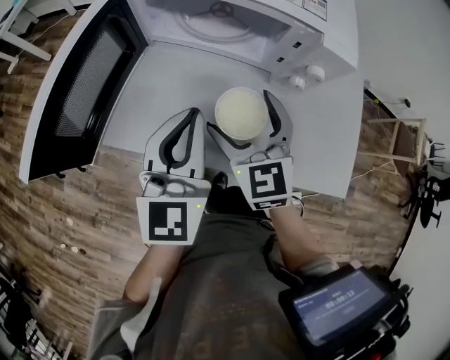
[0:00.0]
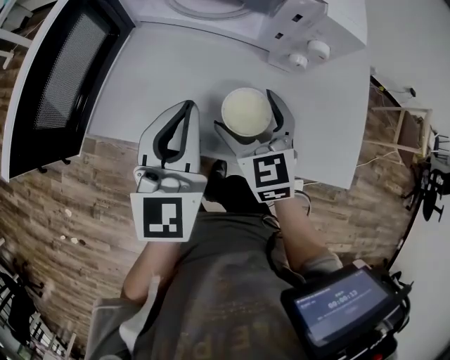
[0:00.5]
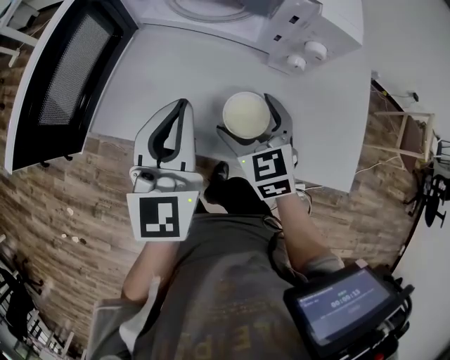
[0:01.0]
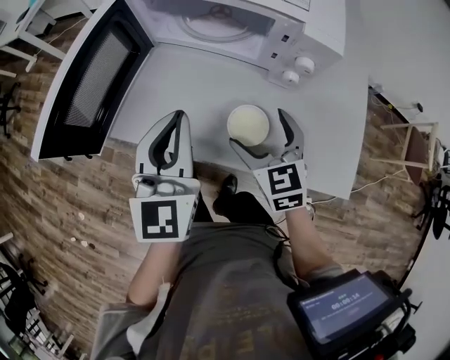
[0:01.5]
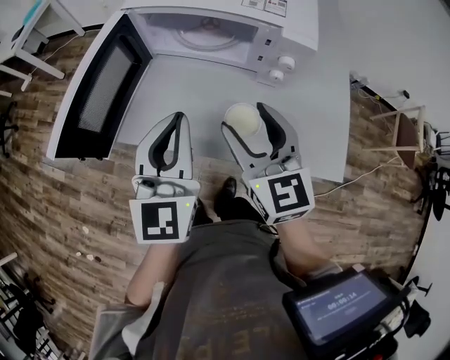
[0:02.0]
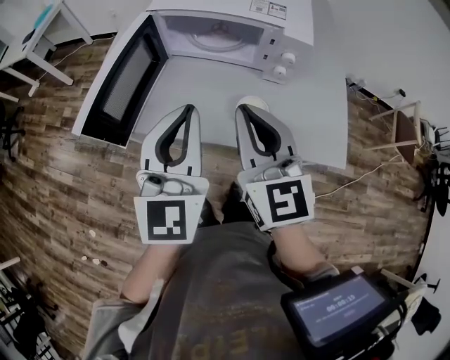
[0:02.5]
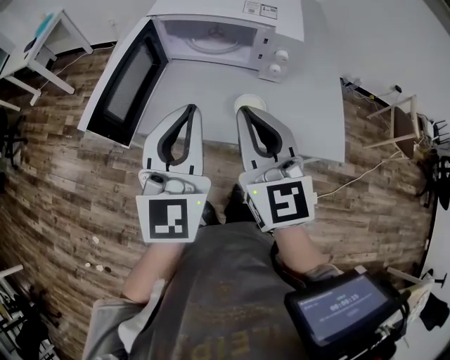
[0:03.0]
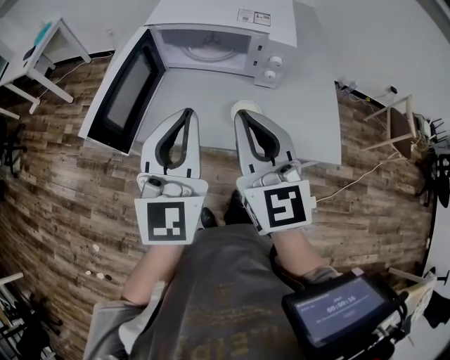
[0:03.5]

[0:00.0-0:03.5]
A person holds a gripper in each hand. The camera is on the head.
0:00.0 to 0:02.0: The right gripper heads upward and backward, covering approximately 10 cm, and closes up; the left gripper moves upward, about 5 cm.
0:02.0 to 0:03.5: Both grippers travel together upward and backward, some 10 cm. The right gripper closes.

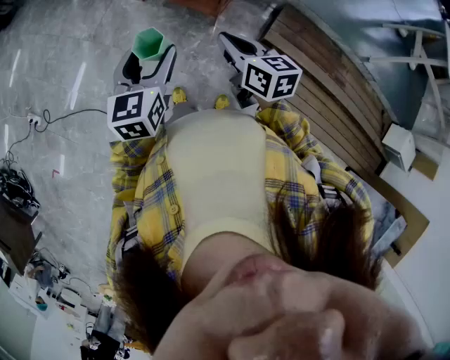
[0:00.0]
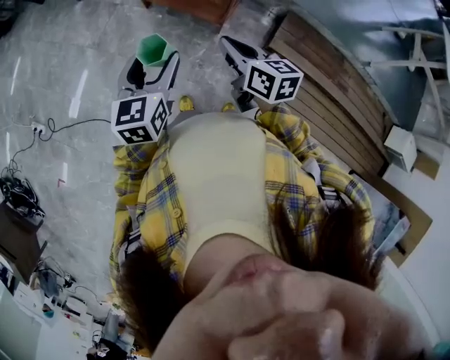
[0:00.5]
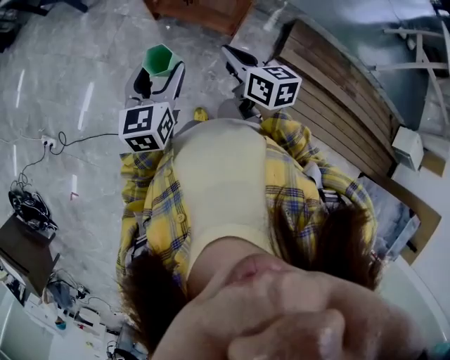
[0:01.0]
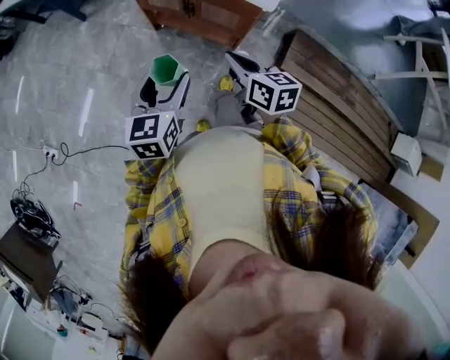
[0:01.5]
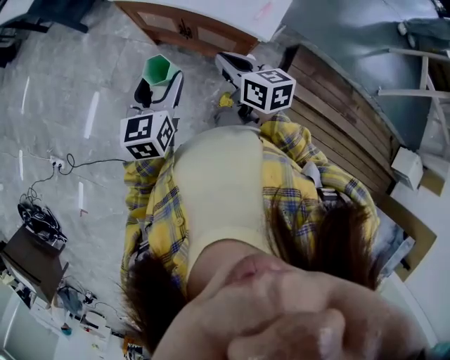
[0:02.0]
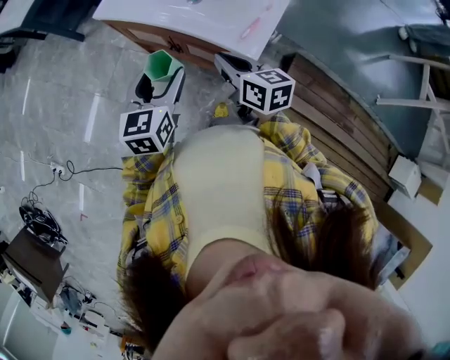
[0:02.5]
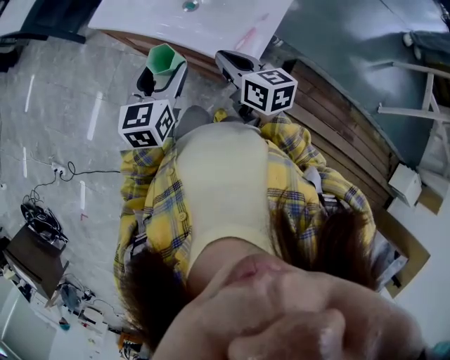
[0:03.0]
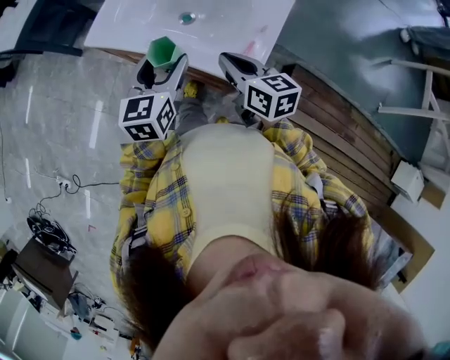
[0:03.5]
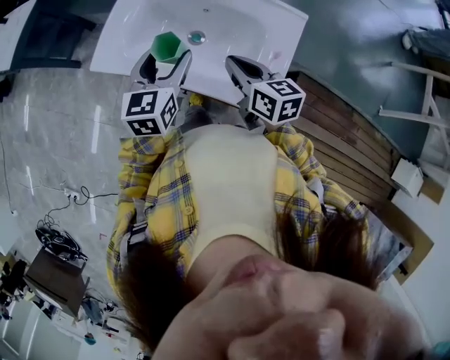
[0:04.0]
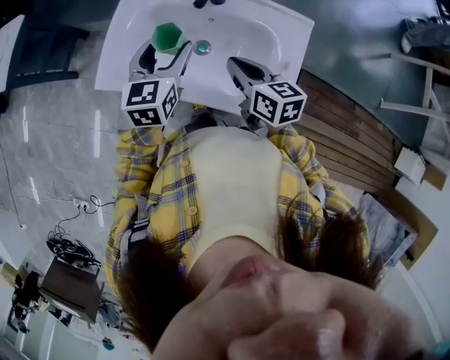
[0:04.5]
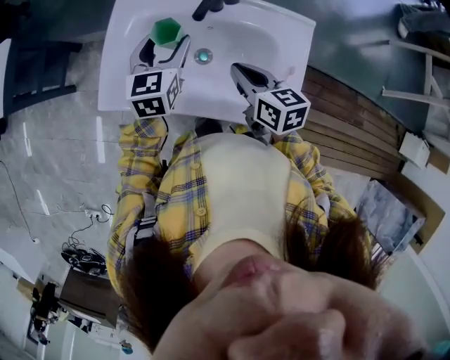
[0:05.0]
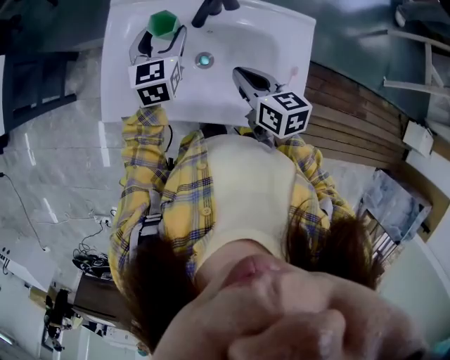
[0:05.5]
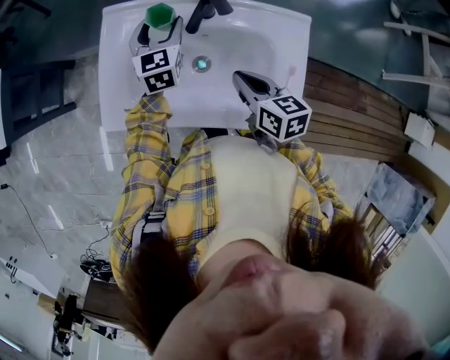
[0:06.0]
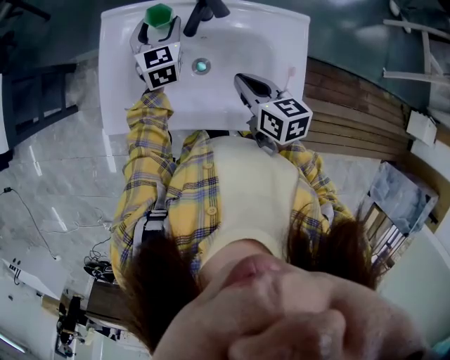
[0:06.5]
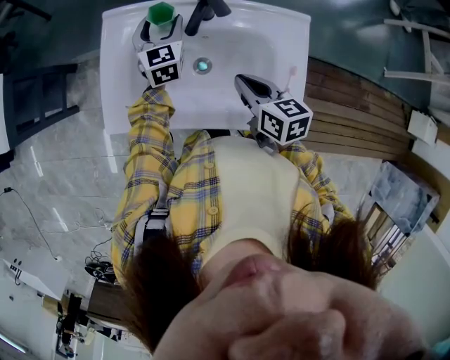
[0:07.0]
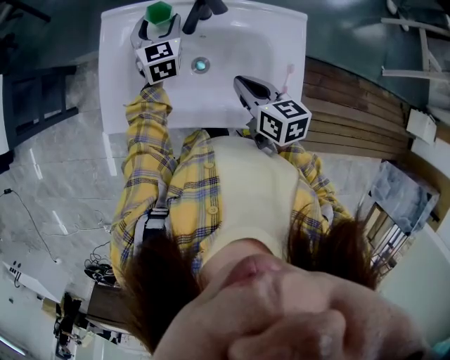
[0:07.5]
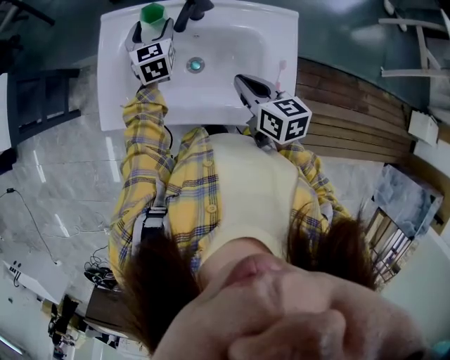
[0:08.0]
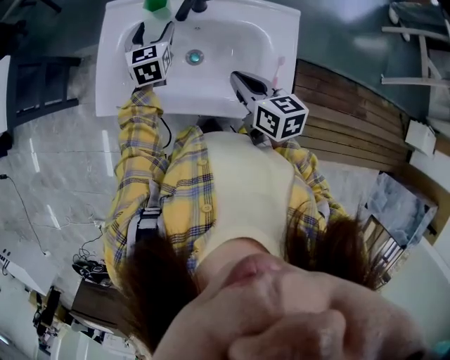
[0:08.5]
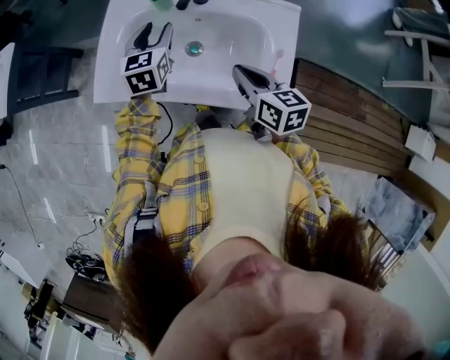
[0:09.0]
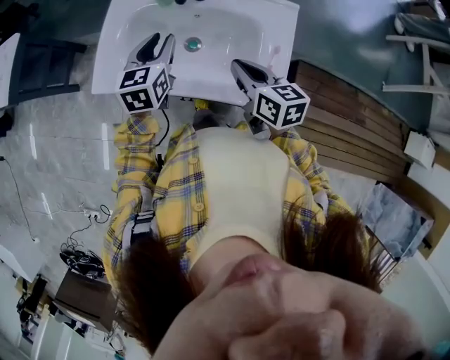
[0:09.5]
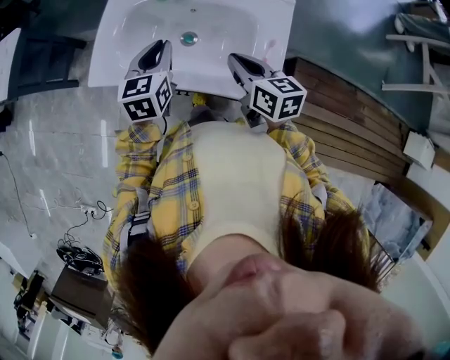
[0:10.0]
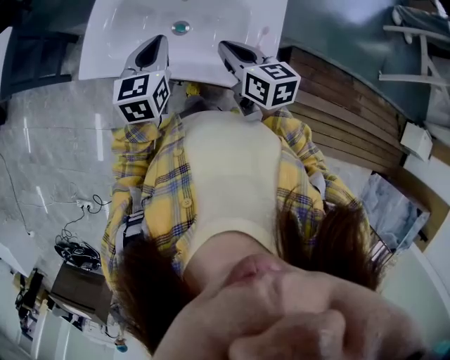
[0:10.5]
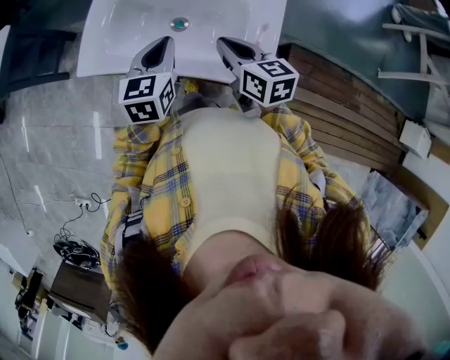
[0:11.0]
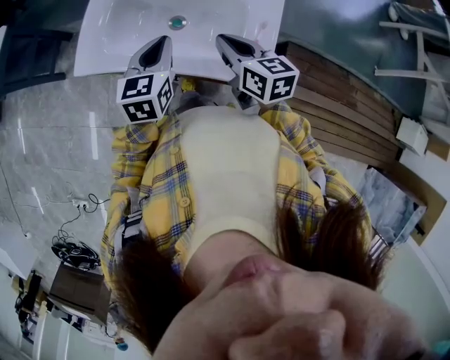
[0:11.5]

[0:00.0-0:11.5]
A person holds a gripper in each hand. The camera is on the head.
0:00.0 to 0:02.0: The grippers both shift forward by approximately 25 cm.
0:02.0 to 0:04.0: The right gripper travels forward and to the right by about 25 cm, while the left gripper travels forward by about 30 cm.
0:04.0 to 0:06.0: The right gripper travels forward by about 5 cm, while the left gripper goes about 25 cm forward.
0:06.0 to 0:07.5: The grippers stay close to where they were, moving slightly.
0:07.5 to 0:09.5: The right gripper moves approximately 5 cm; the left gripper travels backward by some 20 cm, and closes its fingers.
0:09.5 to 0:11.5: The left gripper shifts some 10 cm backward, and closes up.

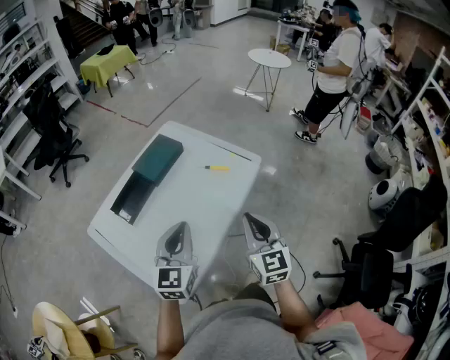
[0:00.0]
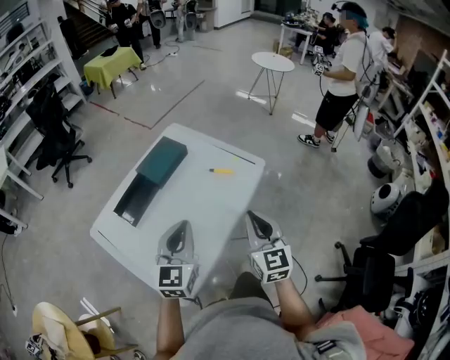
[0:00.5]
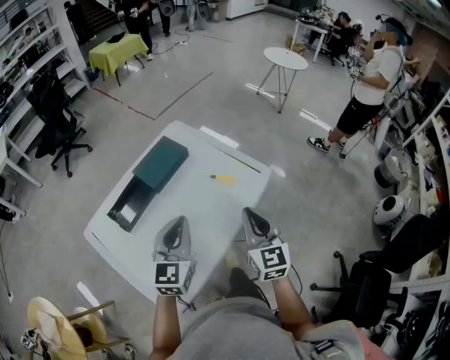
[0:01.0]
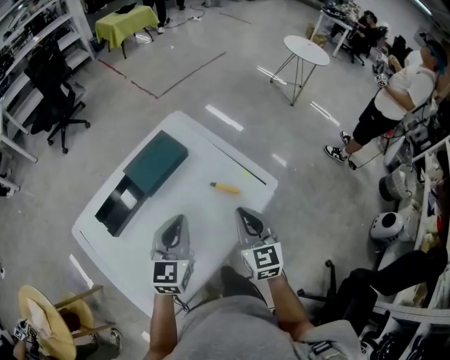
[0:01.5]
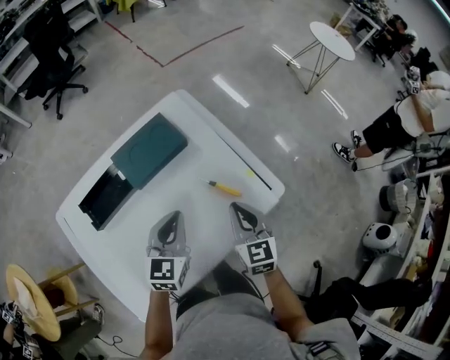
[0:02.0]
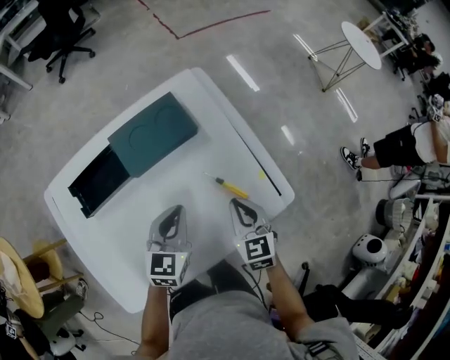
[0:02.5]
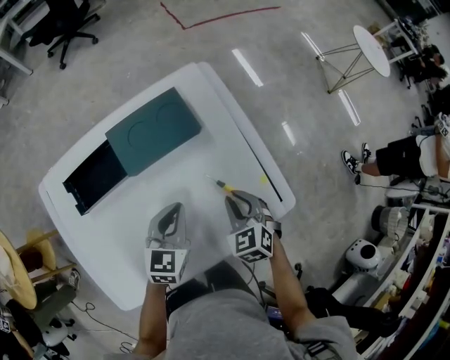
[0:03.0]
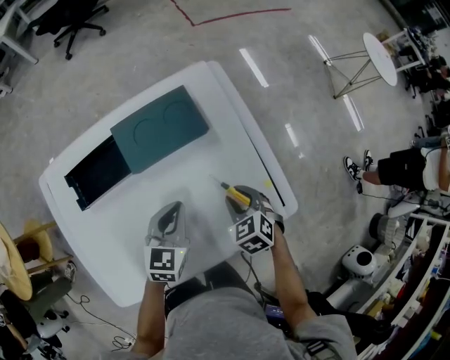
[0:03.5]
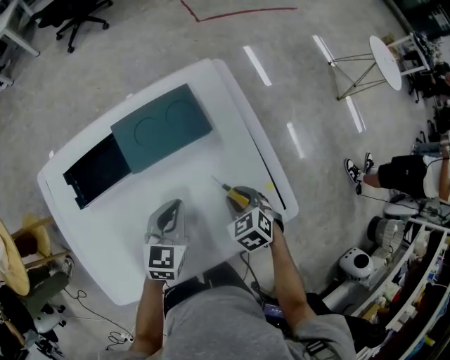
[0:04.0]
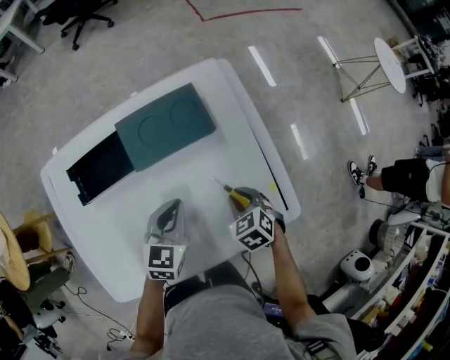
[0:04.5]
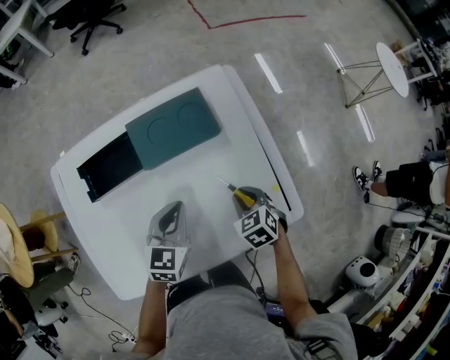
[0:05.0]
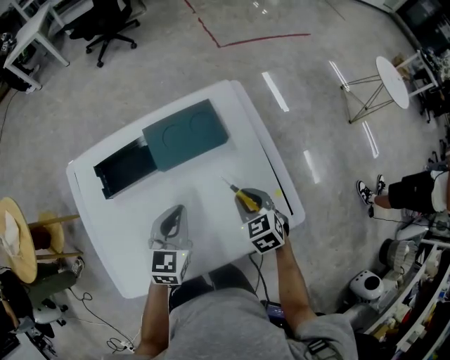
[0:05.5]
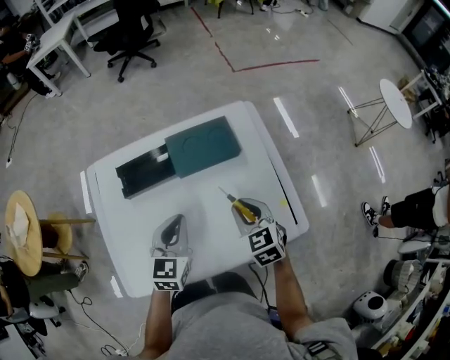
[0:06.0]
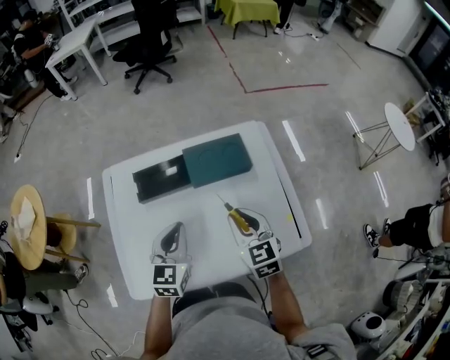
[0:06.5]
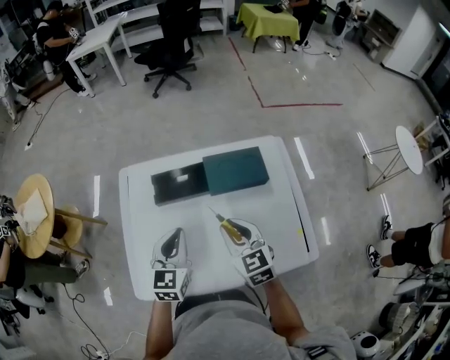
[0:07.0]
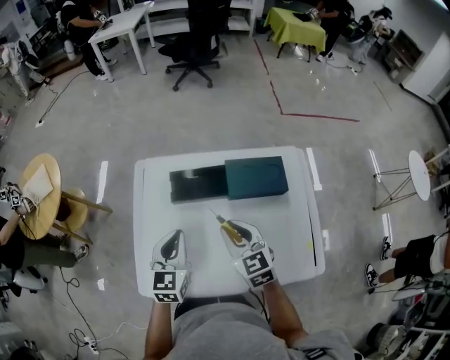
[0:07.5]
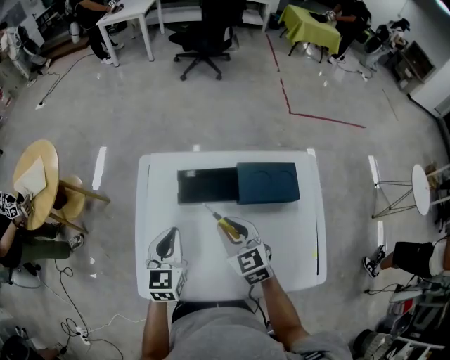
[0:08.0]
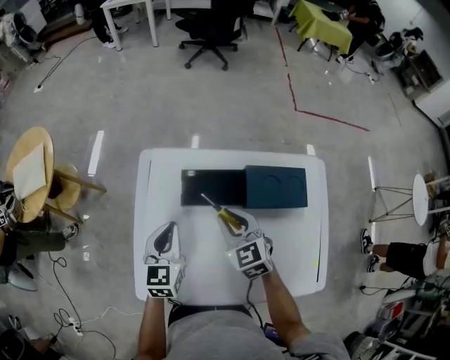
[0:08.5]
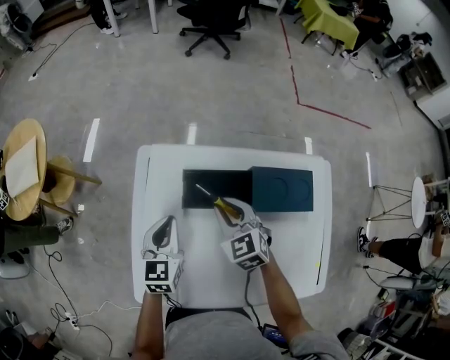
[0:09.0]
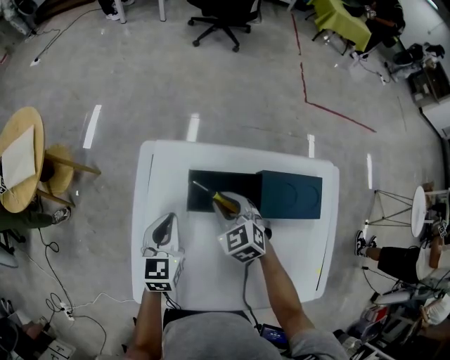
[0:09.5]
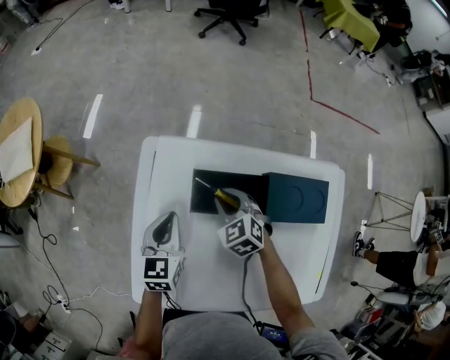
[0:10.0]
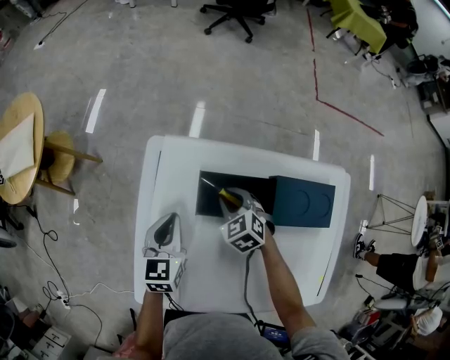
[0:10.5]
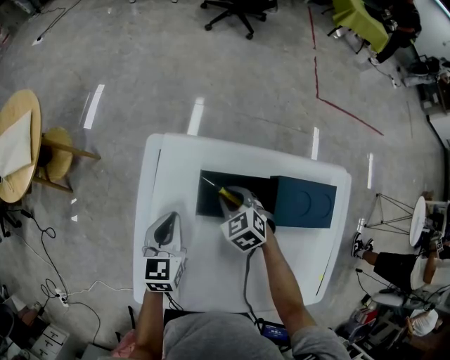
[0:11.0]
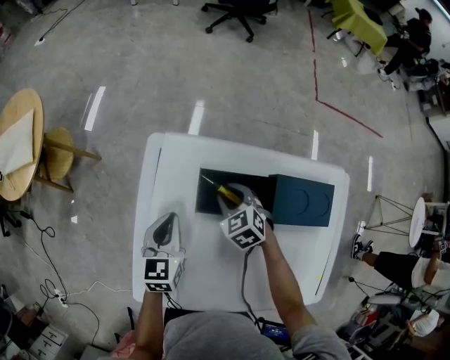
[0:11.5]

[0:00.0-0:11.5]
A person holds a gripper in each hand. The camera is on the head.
0:00.0 to 0:02.0: The two grippers go some 30 cm forward and downward. The left gripper changes its angle by roughly 20 degrees, while the right gripper turns by about 30 degrees.
0:02.0 to 0:04.0: The left gripper shifts approximately 10 cm downward. Meanwhile the right gripper travels downward and forward by roughly 15 cm, angles its fingers downward, by about 40 degrees, and opens its fingers.
0:04.0 to 0:06.0: Both grippers travel together upward and to the left, about 15 cm. The right gripper rotates roughly 30 degrees.
0:06.0 to 0:07.5: Both grippers move to the left, some 15 cm.
0:07.5 to 0:09.5: The two grippers go about 20 cm forward, downward and to the left. The right gripper changes its angle by some 30 degrees.
0:09.5 to 0:11.5: The right gripper goes some 5 cm downward.
